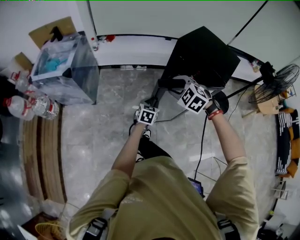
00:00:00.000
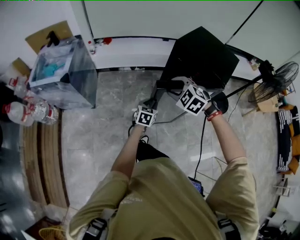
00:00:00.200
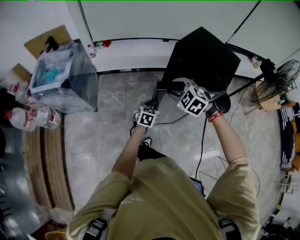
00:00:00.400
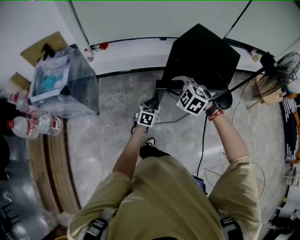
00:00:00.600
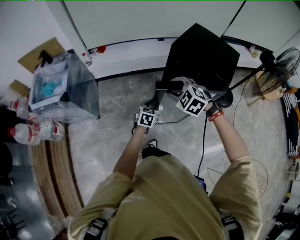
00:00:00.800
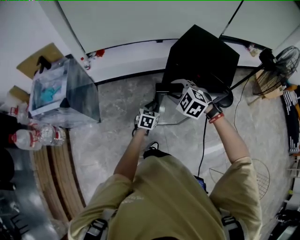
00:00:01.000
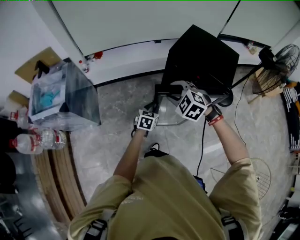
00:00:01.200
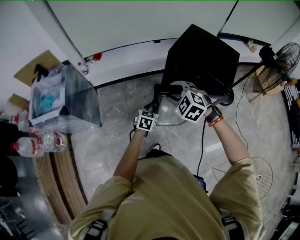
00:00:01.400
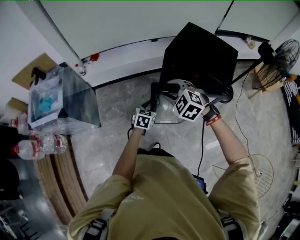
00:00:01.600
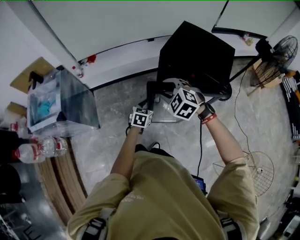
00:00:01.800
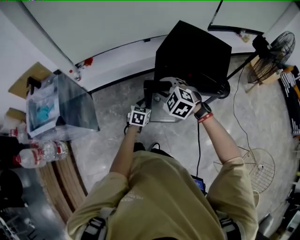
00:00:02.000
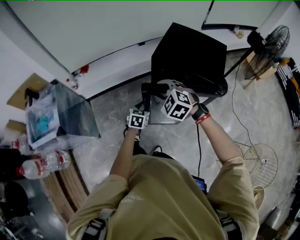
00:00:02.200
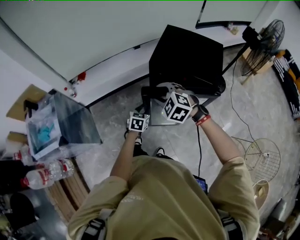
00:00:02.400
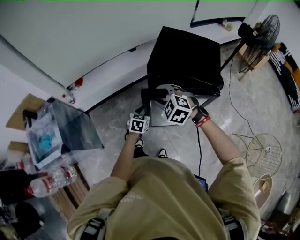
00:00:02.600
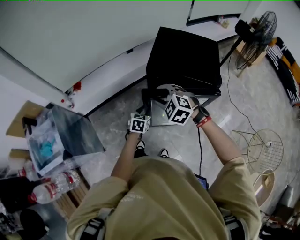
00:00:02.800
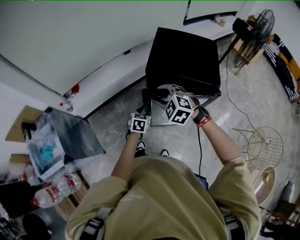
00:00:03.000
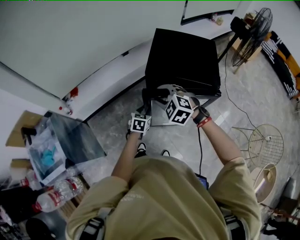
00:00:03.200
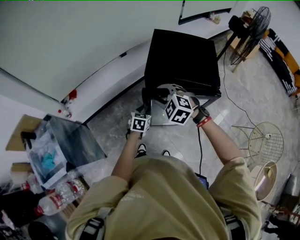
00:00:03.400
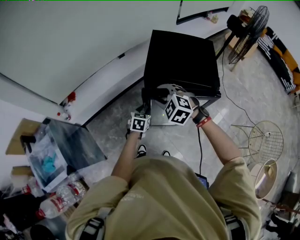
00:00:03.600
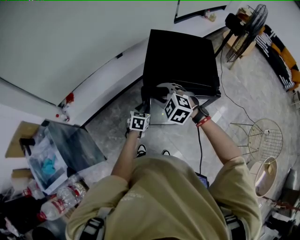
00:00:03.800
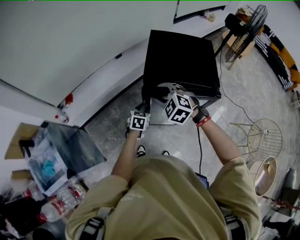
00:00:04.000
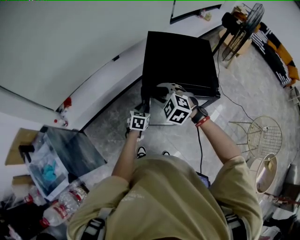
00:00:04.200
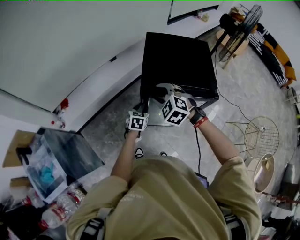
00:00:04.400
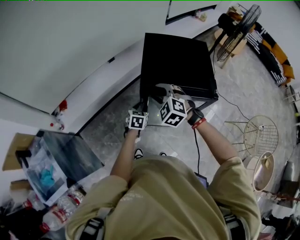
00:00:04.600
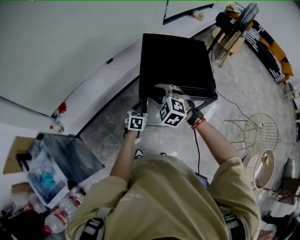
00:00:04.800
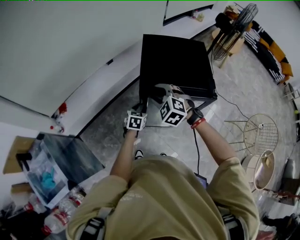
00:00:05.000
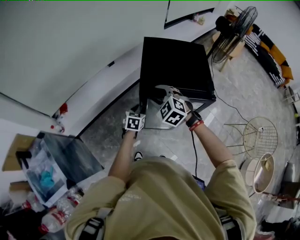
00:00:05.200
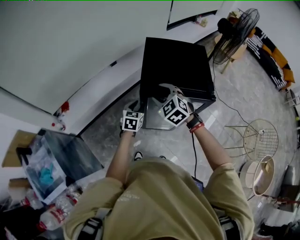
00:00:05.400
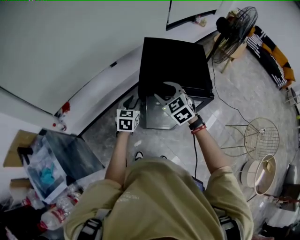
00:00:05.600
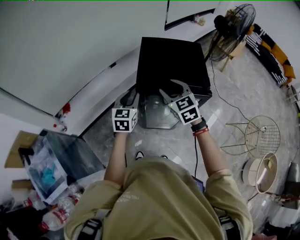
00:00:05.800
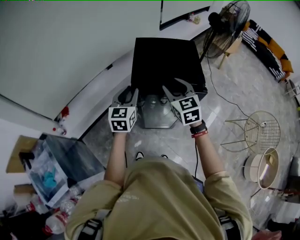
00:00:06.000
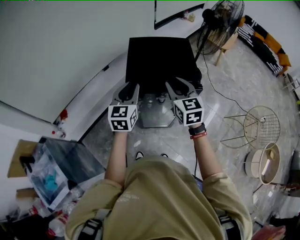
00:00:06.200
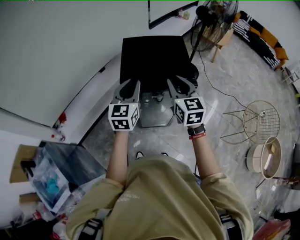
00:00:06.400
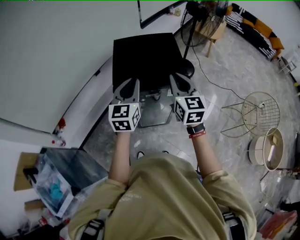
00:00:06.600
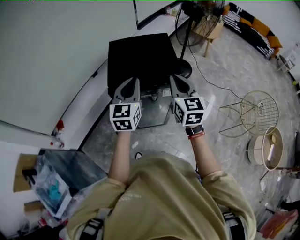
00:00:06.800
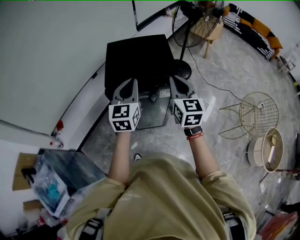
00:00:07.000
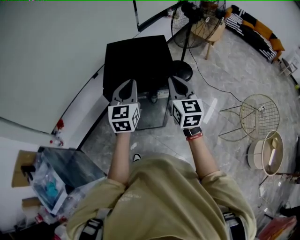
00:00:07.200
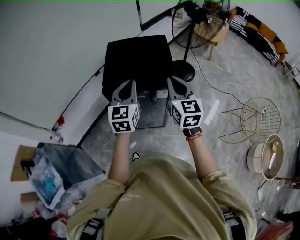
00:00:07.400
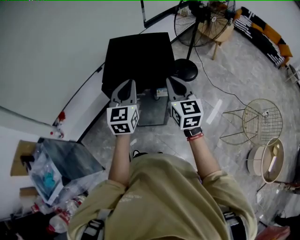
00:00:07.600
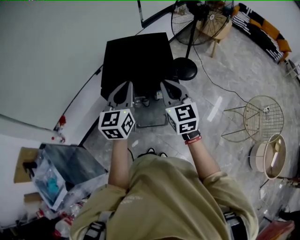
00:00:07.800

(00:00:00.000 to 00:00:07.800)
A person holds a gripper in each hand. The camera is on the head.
00:00:00.000 - 00:00:01.600: Both grippers move forward, about 15 cm.
00:00:01.600 - 00:00:03.200: Both grippers travel together forward, some 10 cm.
00:00:03.200 - 00:00:04.600: Both grippers travel together forward, about 5 cm.
00:00:04.600 - 00:00:06.200: The right gripper moves to the right and upward, approximately 20 cm, and rolls clockwise, seen from behind, by about 50 degrees. Meanwhile the left gripper goes roughly 25 cm upward, and tips its fingers upward by approximately 30 degrees.
00:00:06.200 - 00:00:07.800: The two grippers go about 10 cm to the right. The right gripper closes up; the left gripper closes its fingers.

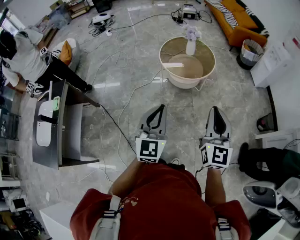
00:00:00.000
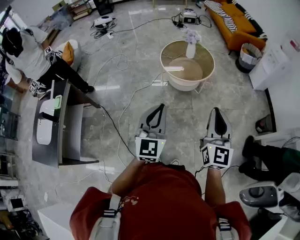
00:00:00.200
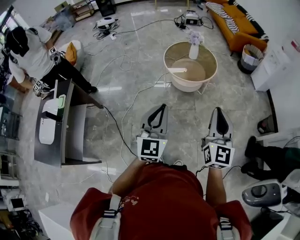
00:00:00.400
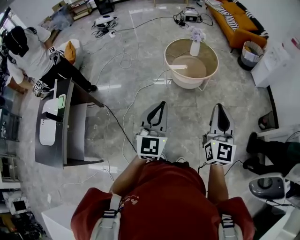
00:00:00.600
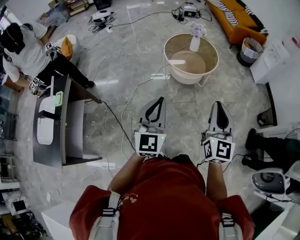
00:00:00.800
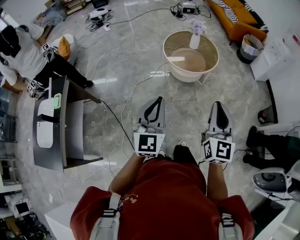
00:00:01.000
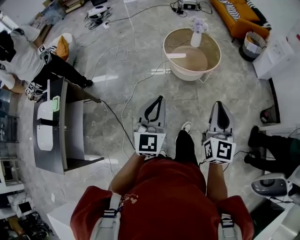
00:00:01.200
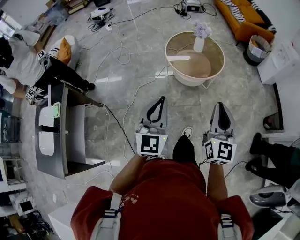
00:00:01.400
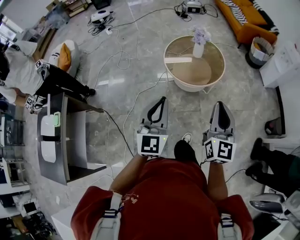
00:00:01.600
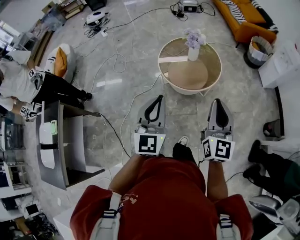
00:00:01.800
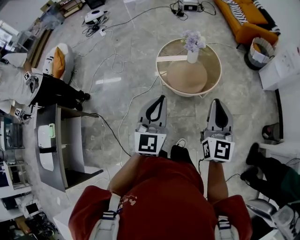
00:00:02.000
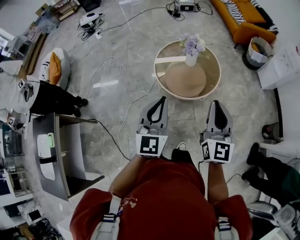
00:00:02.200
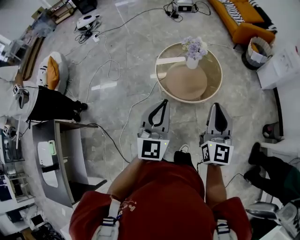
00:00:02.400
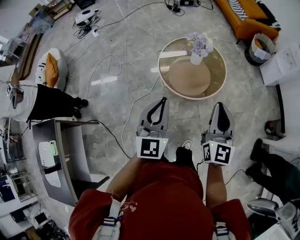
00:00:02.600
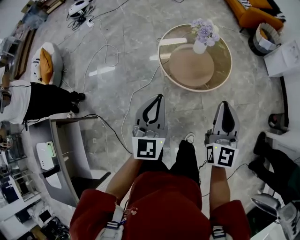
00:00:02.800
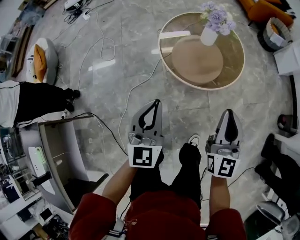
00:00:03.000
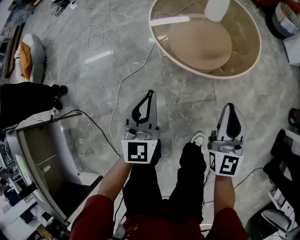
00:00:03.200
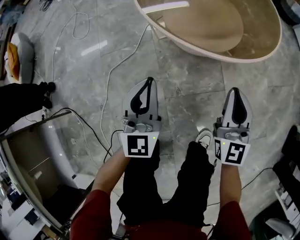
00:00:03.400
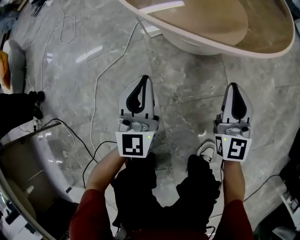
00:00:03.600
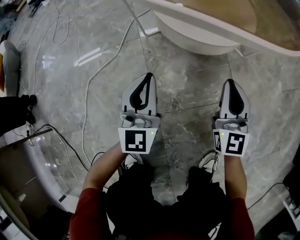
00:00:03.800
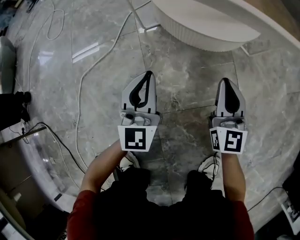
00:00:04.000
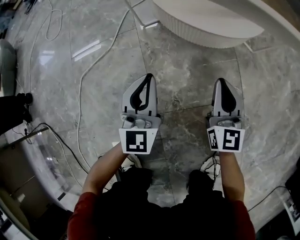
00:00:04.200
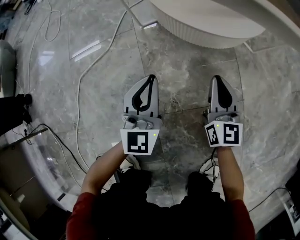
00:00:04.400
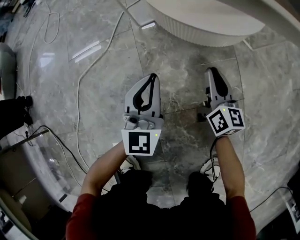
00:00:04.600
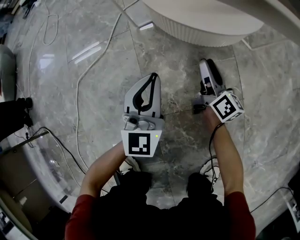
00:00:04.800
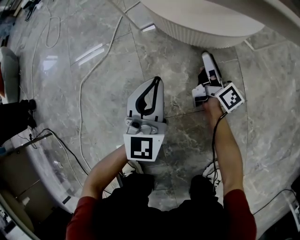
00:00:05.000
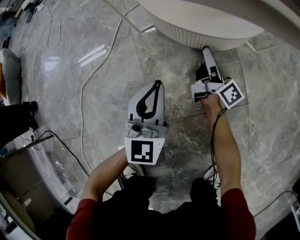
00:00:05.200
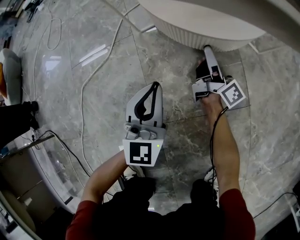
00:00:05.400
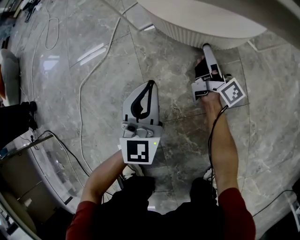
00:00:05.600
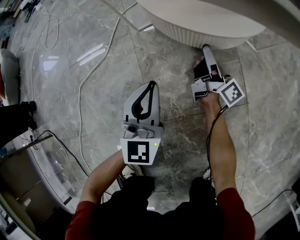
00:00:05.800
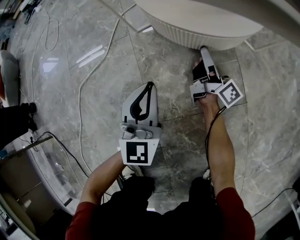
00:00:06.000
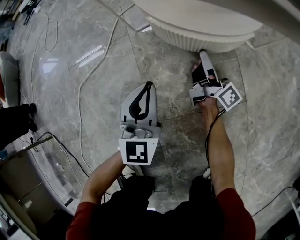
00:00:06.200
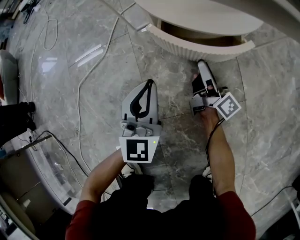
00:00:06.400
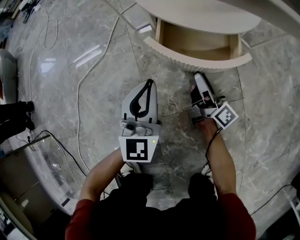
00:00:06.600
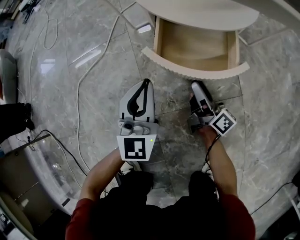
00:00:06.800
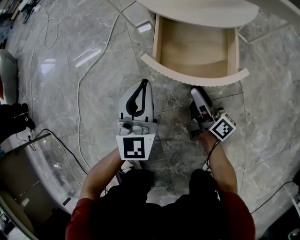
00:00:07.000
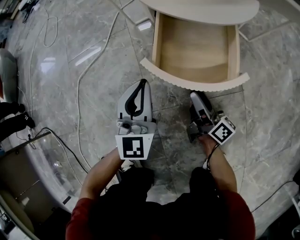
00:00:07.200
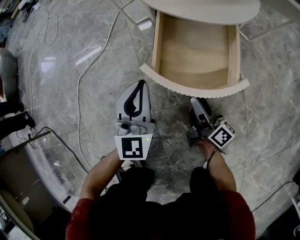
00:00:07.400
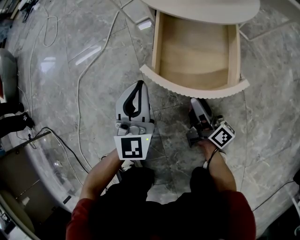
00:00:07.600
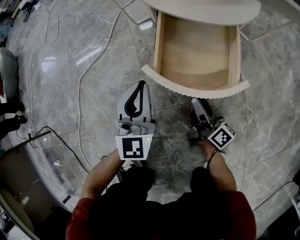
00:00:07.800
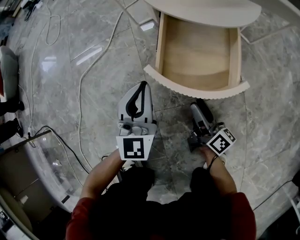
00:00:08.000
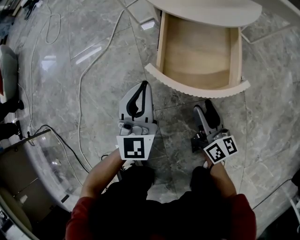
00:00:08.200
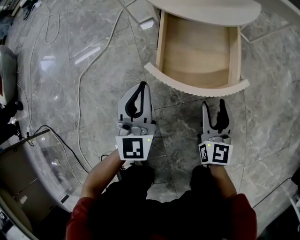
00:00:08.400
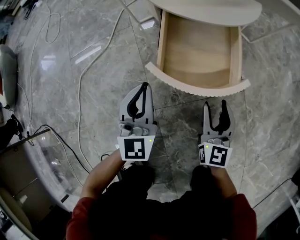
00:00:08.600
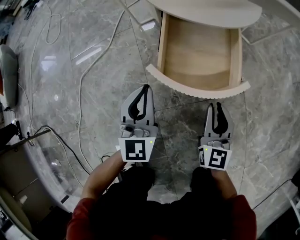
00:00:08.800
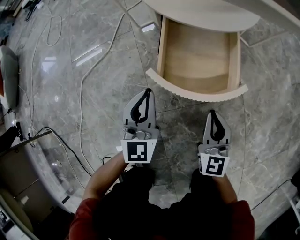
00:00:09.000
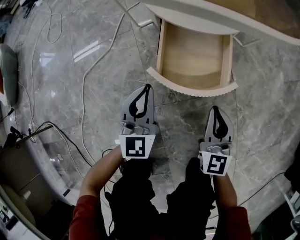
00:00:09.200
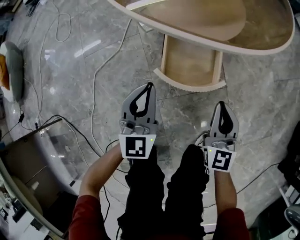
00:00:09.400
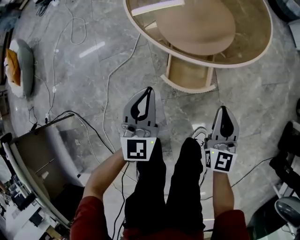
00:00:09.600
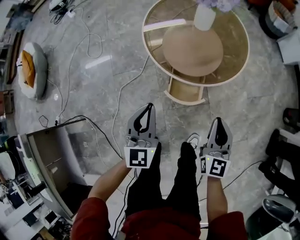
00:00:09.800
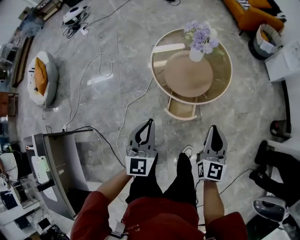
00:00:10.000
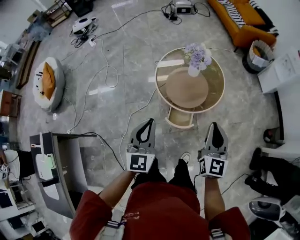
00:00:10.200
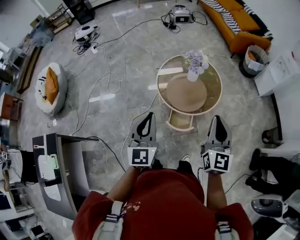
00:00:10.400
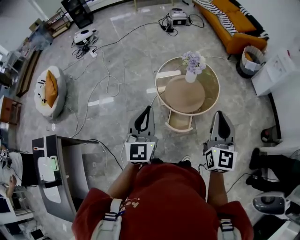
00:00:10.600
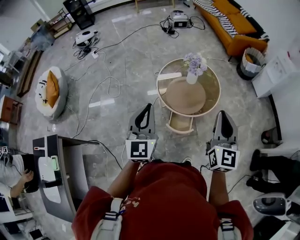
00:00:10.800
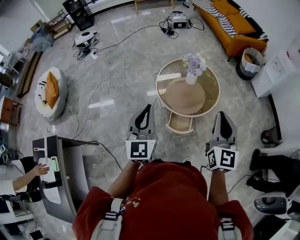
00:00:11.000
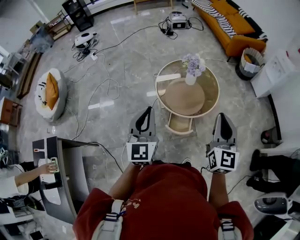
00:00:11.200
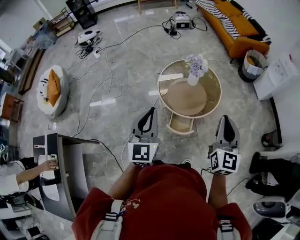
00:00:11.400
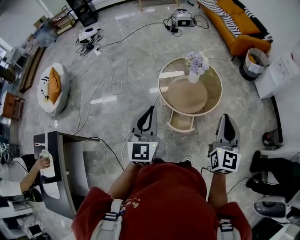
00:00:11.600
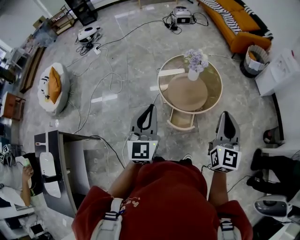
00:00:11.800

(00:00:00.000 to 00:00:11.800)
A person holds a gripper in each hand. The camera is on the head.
00:00:00.000 - 00:00:01.400: The right gripper shifts approximately 10 cm forward. Meanwhile the left gripper shifts approximately 10 cm forward and to the left.
00:00:01.400 - 00:00:03.000: The grippers both shift forward and downward by some 35 cm.
00:00:03.000 - 00:00:04.400: The two grippers go roughly 70 cm downward.
00:00:04.400 - 00:00:06.000: The right gripper moves forward and downward, about 15 cm, rolls clockwise, seen from behind, by roughly 60 degrees, and opens its fingers.
00:00:06.000 - 00:00:07.400: The right gripper heads backward, covering roughly 20 cm.
00:00:07.400 - 00:00:08.800: The right gripper heads upward, covering about 5 cm, rolls counterclockwise, seen from behind, by roughly 70 degrees, and closes its fingers.
00:00:08.800 - 00:00:10.400: The grippers both shift upward by approximately 80 cm.
00:00:10.400 - 00:00:11.800: There are only small adjustments of the grippers.

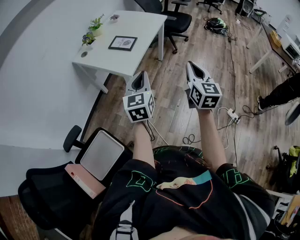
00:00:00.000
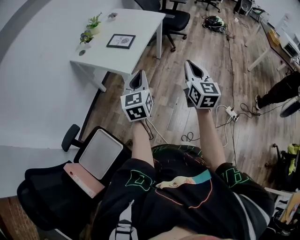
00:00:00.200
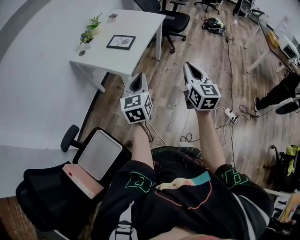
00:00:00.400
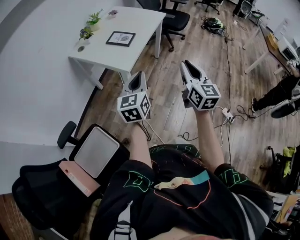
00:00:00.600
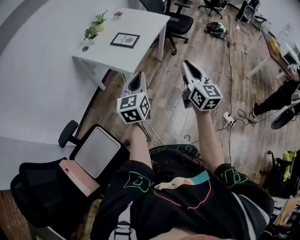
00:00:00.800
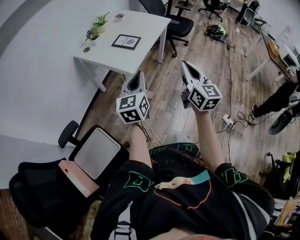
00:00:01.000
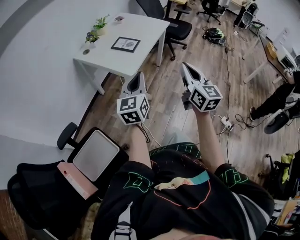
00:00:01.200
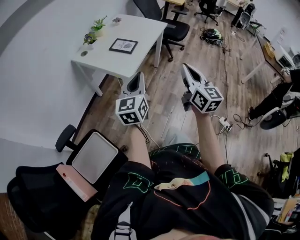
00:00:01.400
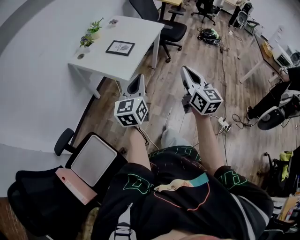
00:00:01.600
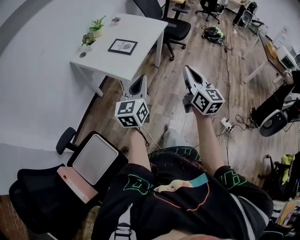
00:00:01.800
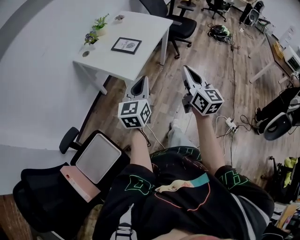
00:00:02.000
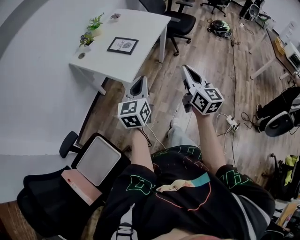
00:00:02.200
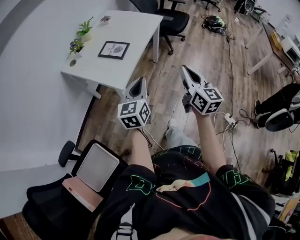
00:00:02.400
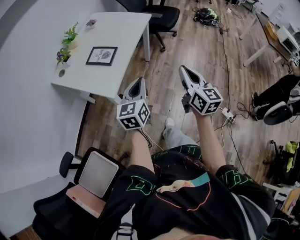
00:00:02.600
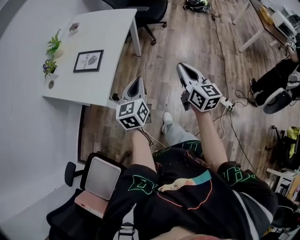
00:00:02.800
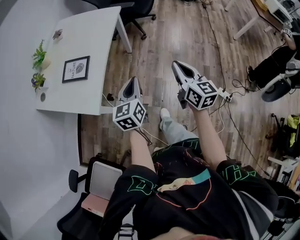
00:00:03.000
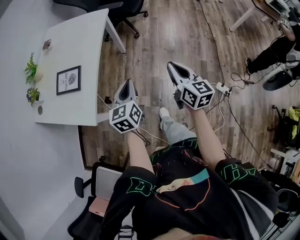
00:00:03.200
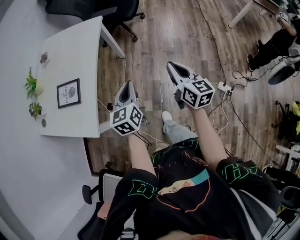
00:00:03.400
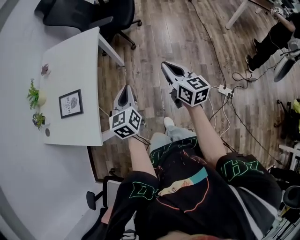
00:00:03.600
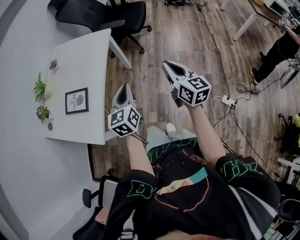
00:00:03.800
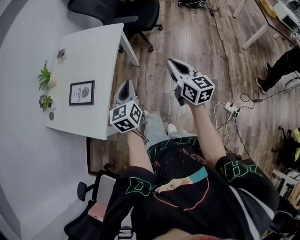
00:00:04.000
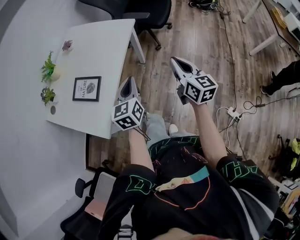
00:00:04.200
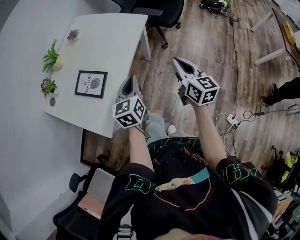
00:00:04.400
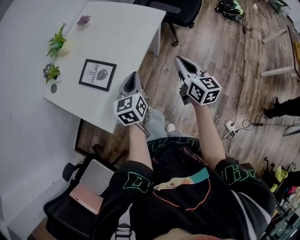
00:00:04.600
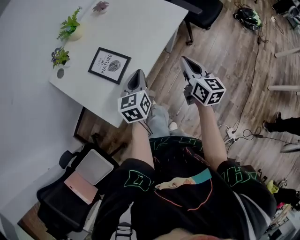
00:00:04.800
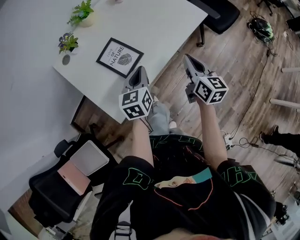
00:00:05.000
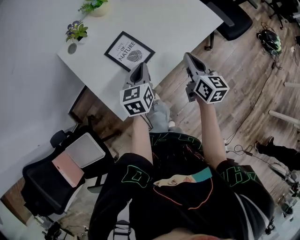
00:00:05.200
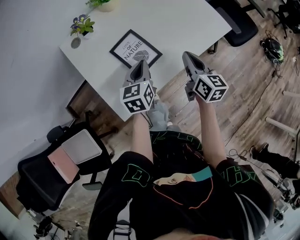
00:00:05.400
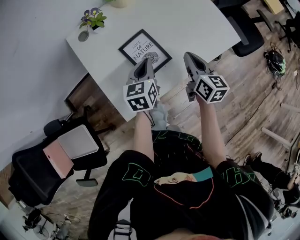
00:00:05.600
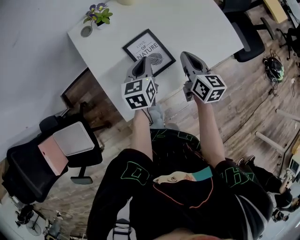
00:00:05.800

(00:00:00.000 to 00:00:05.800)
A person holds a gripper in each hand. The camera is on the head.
00:00:00.000 - 00:00:01.400: The right gripper goes about 5 cm to the left.
00:00:01.400 - 00:00:02.800: Both grippers move forward, to the right and downward, about 30 cm.
00:00:02.800 - 00:00:04.400: Both grippers move forward, about 25 cm.
00:00:04.400 - 00:00:05.800: The right gripper changes place by about 40 cm, and changes its angle by approximately 40 degrees, while the left gripper shifts by some 30 cm, and turns by roughly 40 degrees.
